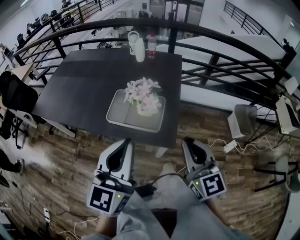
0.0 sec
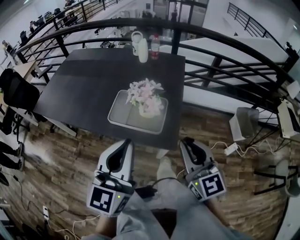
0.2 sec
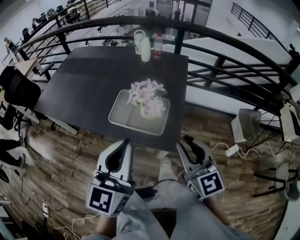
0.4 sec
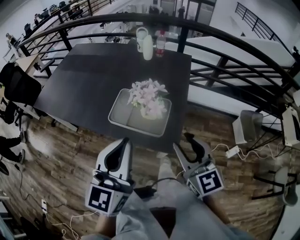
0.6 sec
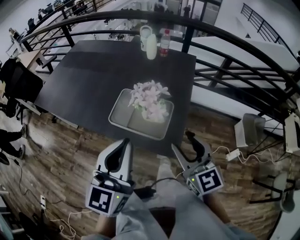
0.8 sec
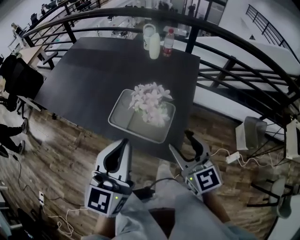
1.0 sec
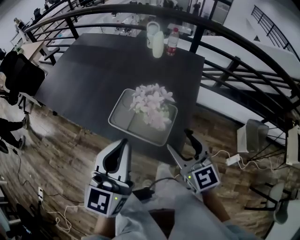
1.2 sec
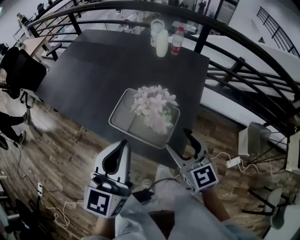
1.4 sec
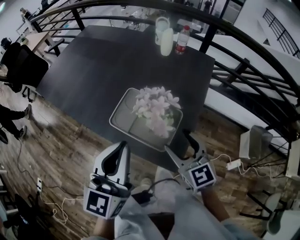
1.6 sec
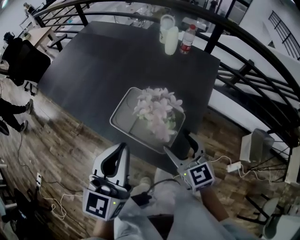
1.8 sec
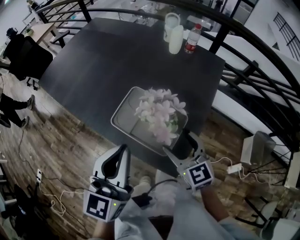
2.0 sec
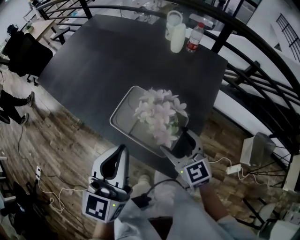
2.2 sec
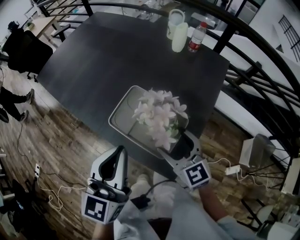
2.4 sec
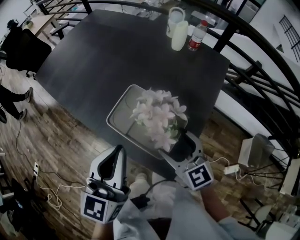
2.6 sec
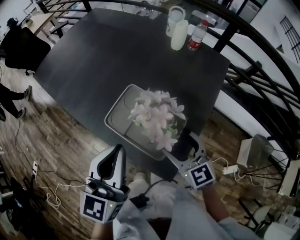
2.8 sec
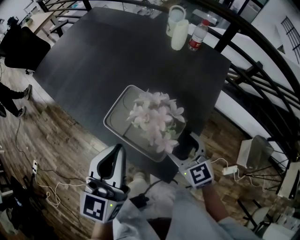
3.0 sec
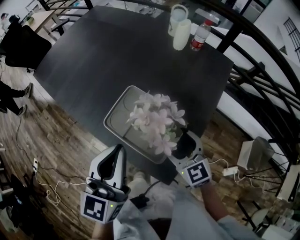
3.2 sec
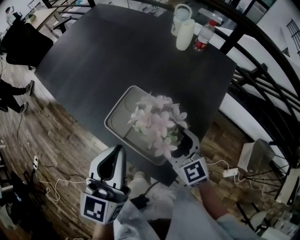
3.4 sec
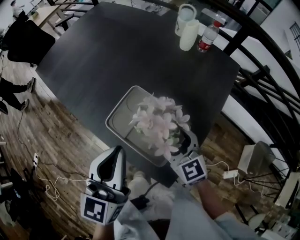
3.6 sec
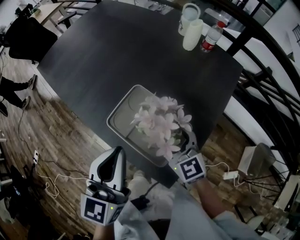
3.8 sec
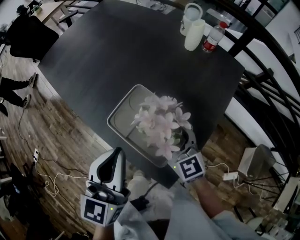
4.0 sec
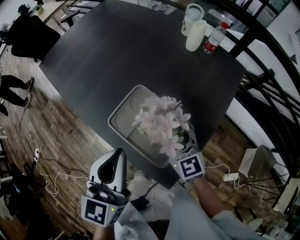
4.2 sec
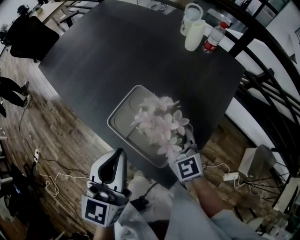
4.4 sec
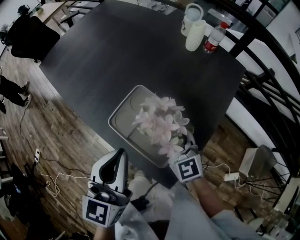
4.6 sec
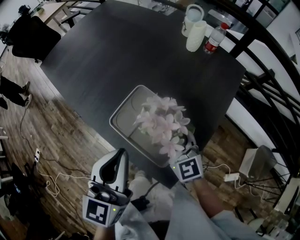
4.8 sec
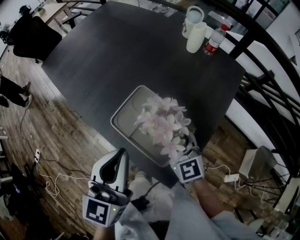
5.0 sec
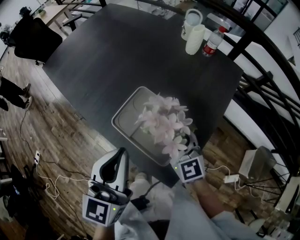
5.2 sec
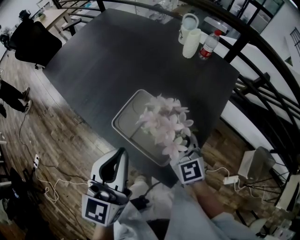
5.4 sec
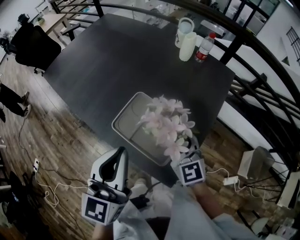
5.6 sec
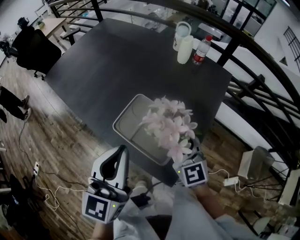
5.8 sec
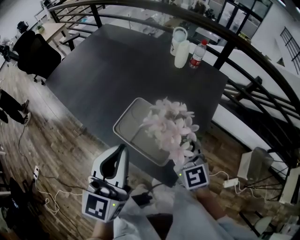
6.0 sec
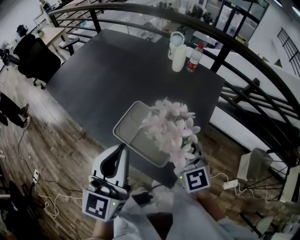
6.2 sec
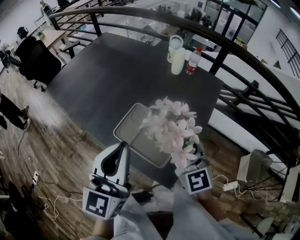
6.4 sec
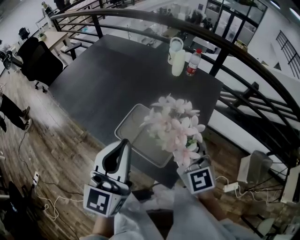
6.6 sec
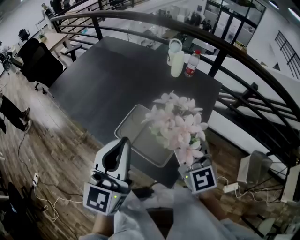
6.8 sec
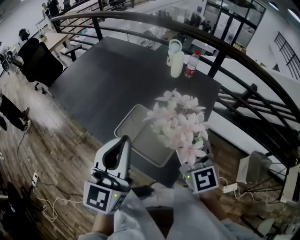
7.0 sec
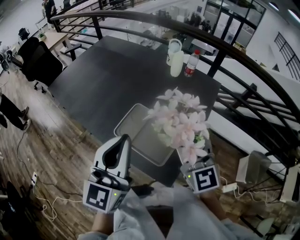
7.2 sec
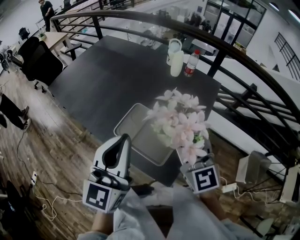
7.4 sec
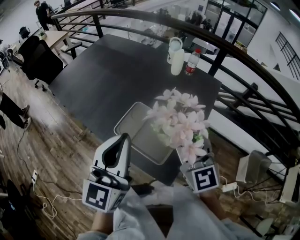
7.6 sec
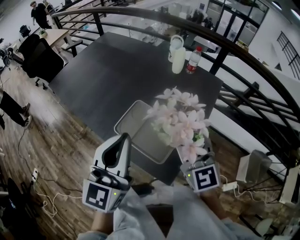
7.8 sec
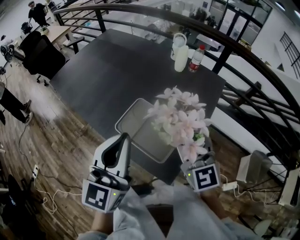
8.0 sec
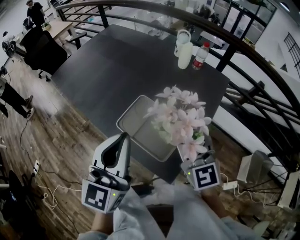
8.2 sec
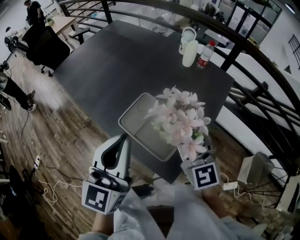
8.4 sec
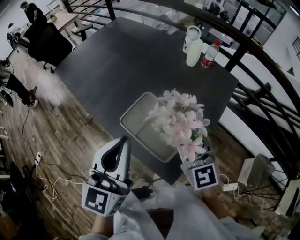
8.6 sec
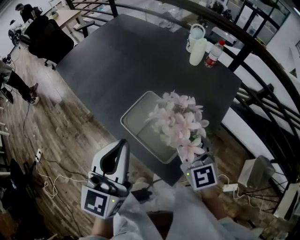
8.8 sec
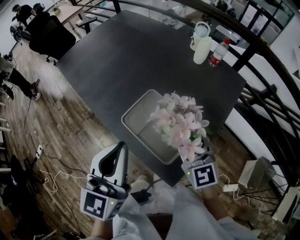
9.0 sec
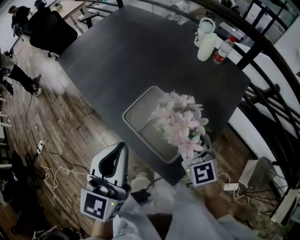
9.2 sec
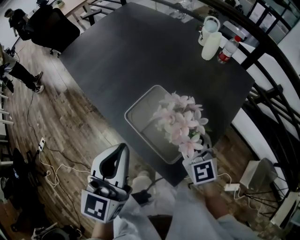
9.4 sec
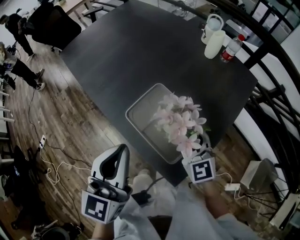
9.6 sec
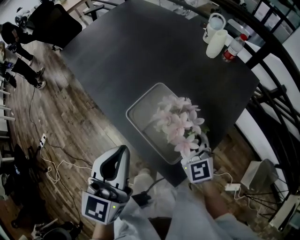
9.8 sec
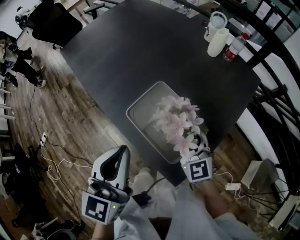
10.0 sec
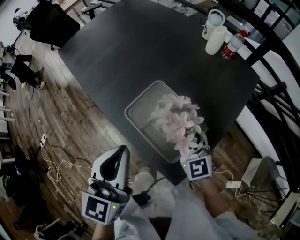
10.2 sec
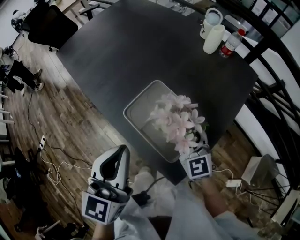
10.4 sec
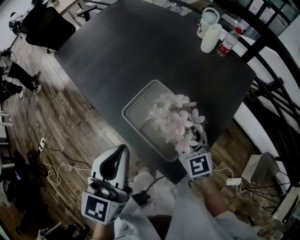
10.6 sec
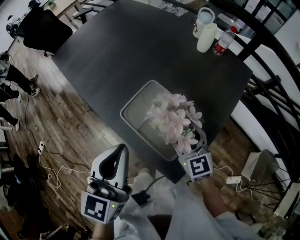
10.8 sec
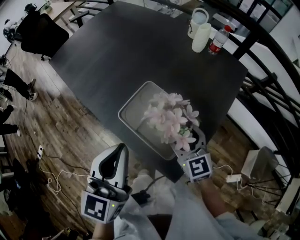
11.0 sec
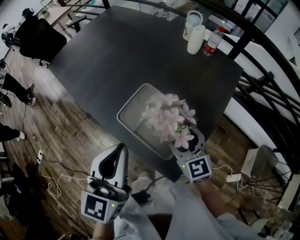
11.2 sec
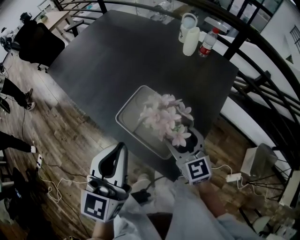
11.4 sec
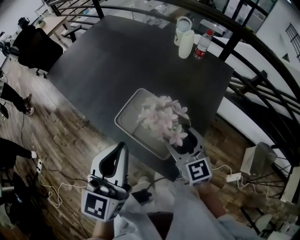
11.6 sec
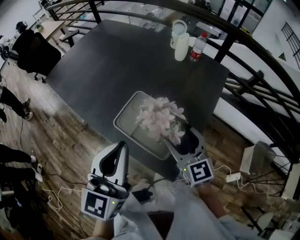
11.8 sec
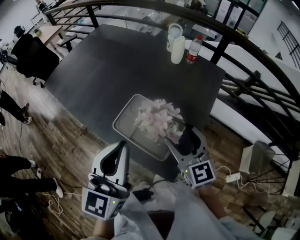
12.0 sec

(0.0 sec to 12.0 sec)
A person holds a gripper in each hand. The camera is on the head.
0.0 sec - 1.6 sec: The right gripper travels forward and downward by about 20 cm, swivels roughly 30 degrees, and opens, while the left gripper travels forward by about 15 cm.
1.6 sec - 3.0 sec: The left gripper is displaced forward by about 5 cm. Meanwhile the right gripper moves downward and forward, roughly 10 cm.
3.0 sec - 4.4 sec: The right gripper shifts some 5 cm forward, and closes.
4.4 sec - 6.0 sec: The grippers both shift upward by roughly 10 cm.
6.0 sec - 7.6 sec: The right gripper travels upward by approximately 10 cm.
7.6 sec - 9.0 sec: The right gripper moves downward, about 10 cm. The left gripper changes place by about 5 cm.
9.0 sec - 10.4 sec: The right gripper travels downward by about 10 cm.
10.4 sec - 12.0 sec: The left gripper heads upward, covering approximately 5 cm. The right gripper travels upward by approximately 10 cm.

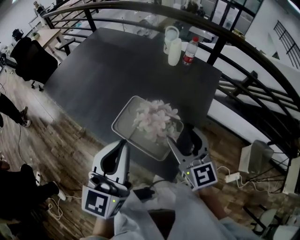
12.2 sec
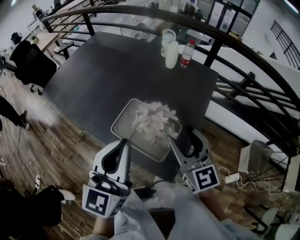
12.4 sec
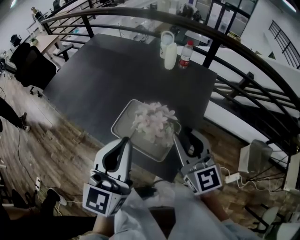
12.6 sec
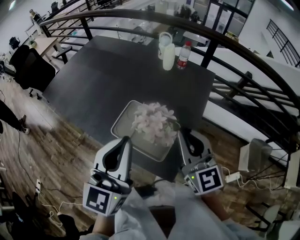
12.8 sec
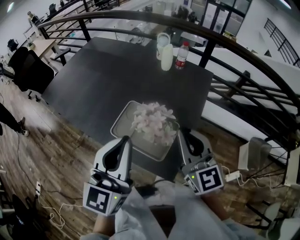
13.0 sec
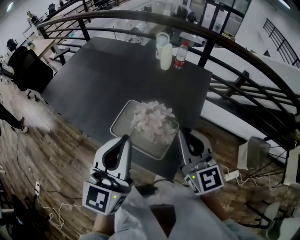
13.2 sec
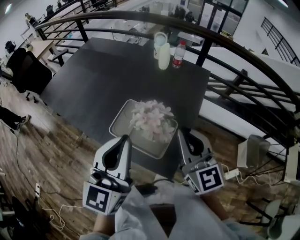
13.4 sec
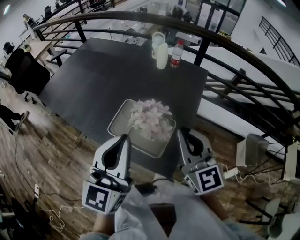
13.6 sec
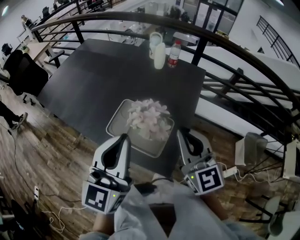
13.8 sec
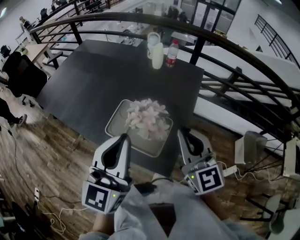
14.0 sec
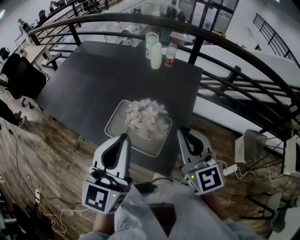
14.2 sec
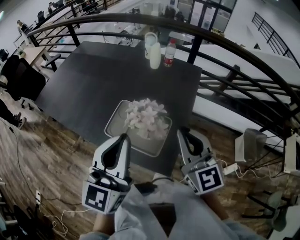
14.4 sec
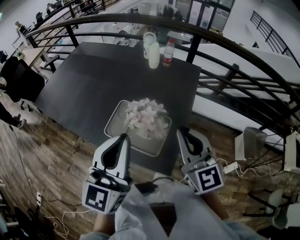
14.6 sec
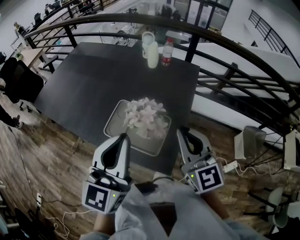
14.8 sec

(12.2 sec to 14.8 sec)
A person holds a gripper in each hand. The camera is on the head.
12.2 sec - 13.4 sec: The right gripper travels upward by some 5 cm, and closes its fingers.
13.4 sec - 14.8 sec: There are only small adjustments of the grippers.

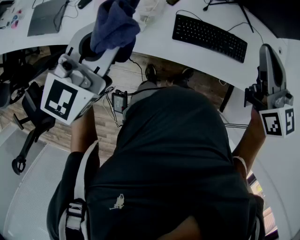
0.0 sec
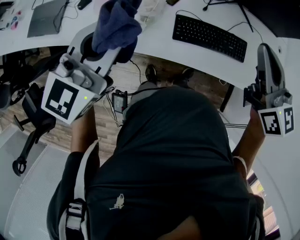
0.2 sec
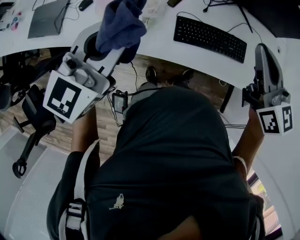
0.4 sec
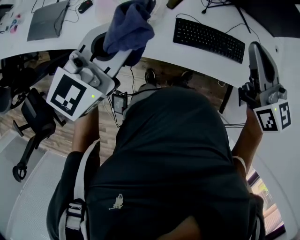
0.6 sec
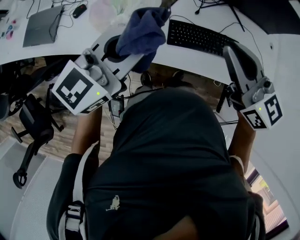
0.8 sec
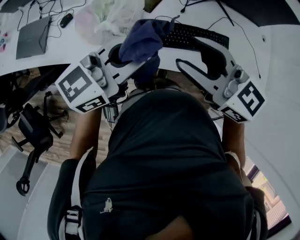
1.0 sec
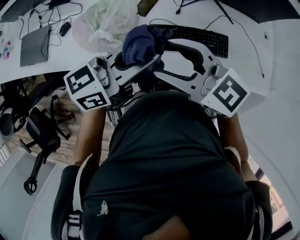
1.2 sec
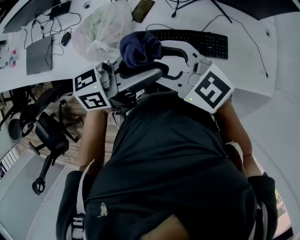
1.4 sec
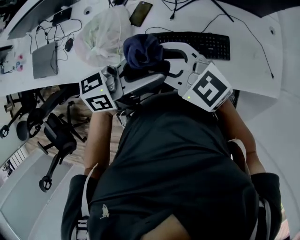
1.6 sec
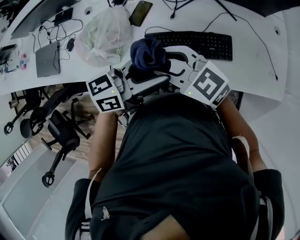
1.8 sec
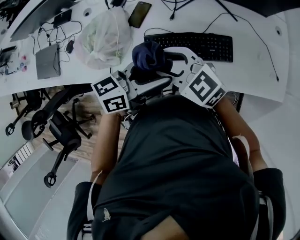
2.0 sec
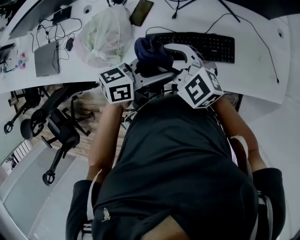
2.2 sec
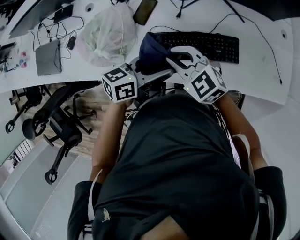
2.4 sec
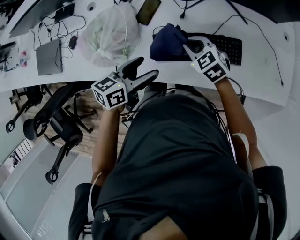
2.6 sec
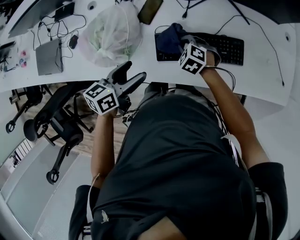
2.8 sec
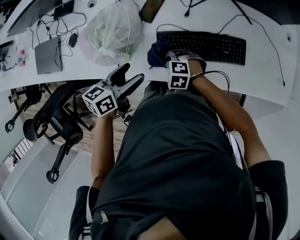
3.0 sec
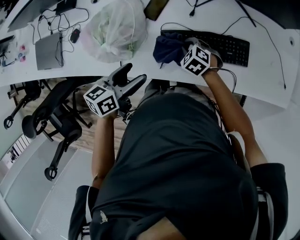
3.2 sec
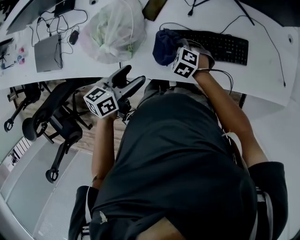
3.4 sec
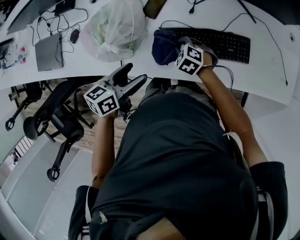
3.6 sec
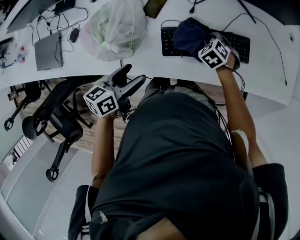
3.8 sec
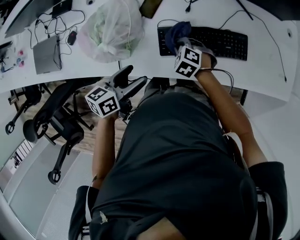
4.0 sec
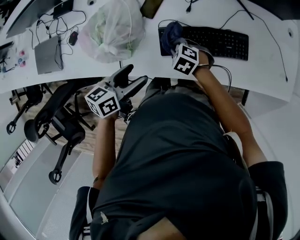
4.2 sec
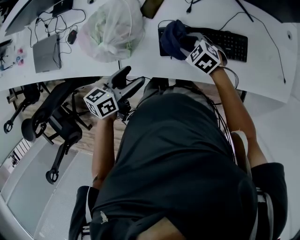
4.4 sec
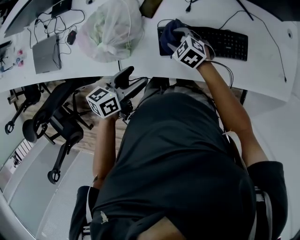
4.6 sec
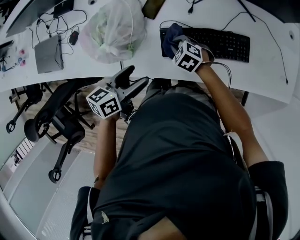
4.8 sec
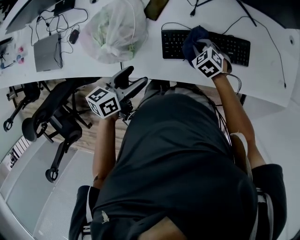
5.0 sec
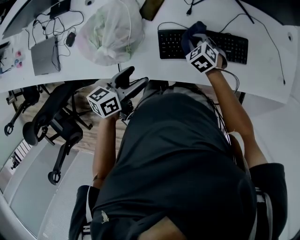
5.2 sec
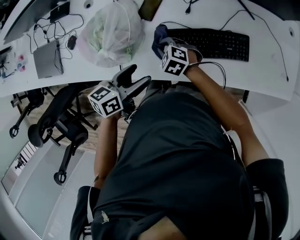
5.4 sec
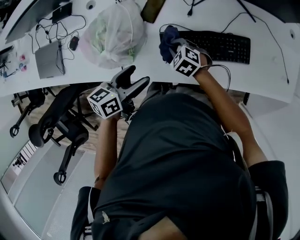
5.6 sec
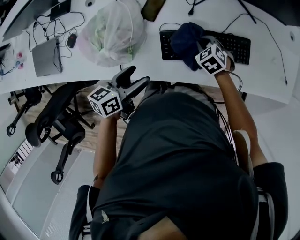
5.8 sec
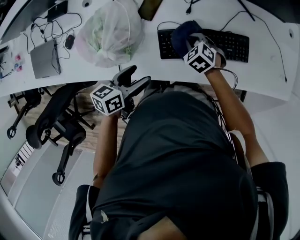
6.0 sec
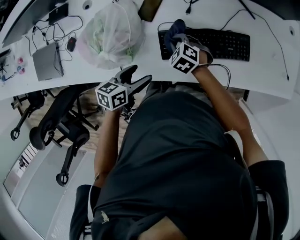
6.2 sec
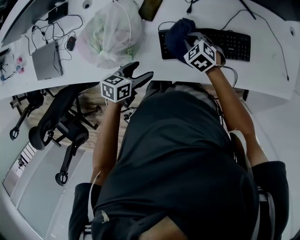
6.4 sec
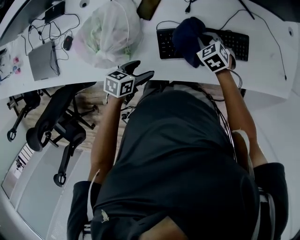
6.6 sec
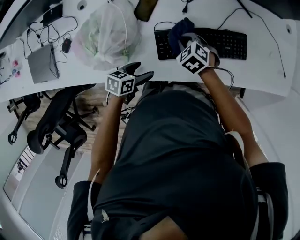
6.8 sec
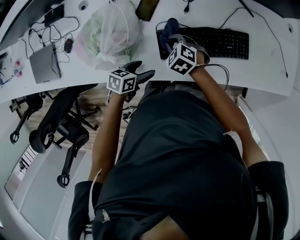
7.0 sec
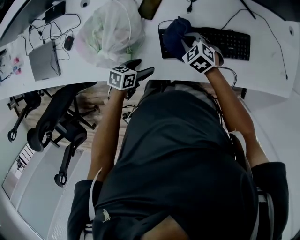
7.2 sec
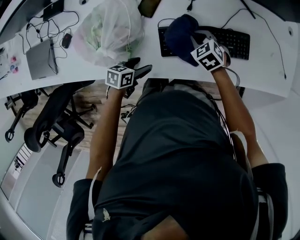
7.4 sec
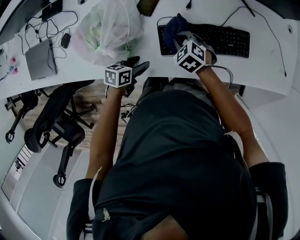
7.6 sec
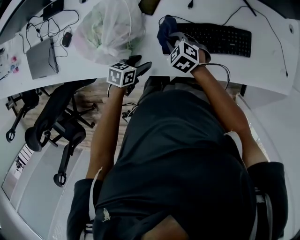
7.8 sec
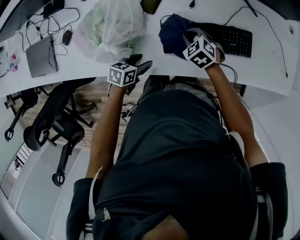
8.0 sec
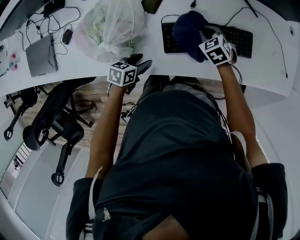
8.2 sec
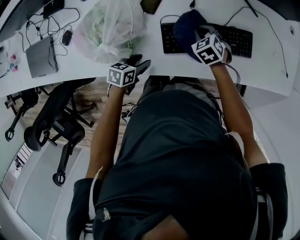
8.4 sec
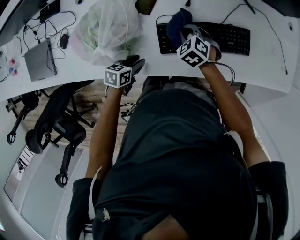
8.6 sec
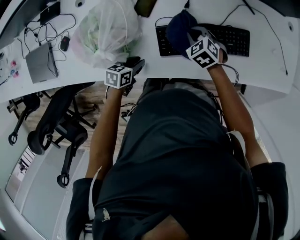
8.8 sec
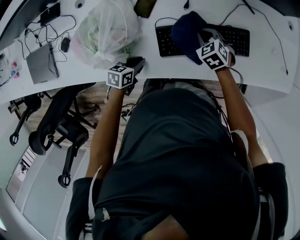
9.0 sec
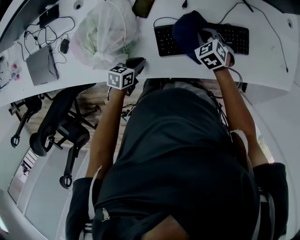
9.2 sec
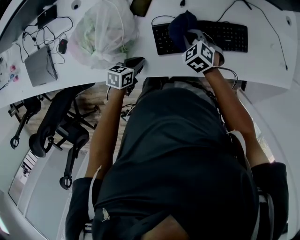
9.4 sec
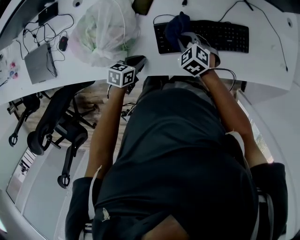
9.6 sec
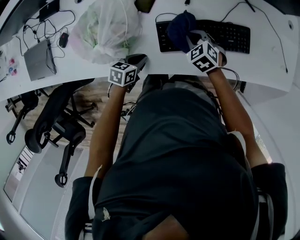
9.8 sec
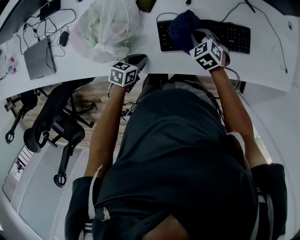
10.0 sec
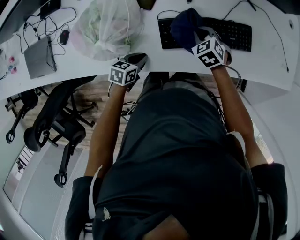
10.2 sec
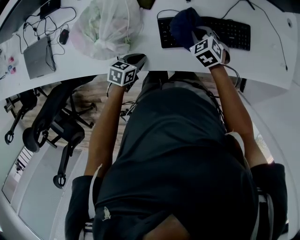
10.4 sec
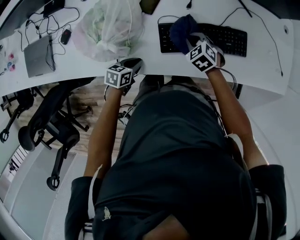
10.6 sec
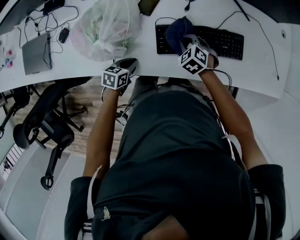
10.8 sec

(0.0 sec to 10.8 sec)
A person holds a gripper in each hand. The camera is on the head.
0.0 sec - 1.6 sec: The left gripper shifts by some 25 cm, changes its angle by some 60 degrees, and opens its fingers, while the right gripper shifts some 10 cm downward, rotates roughly 40 degrees, and opens up.
1.6 sec - 3.0 sec: The right gripper shifts roughly 30 cm downward, angles its fingers downward, by about 50 degrees, and closes up; the left gripper shifts some 20 cm downward, and tilts its fingers some 30 degrees downward.
3.0 sec - 4.6 sec: The right gripper changes its angle by roughly 30 degrees, and opens.
4.6 sec - 6.2 sec: The right gripper swings left and right, approximately 15 cm each way, with 3 reversals, and closes. The left gripper heads downward, covering approximately 5 cm.
6.2 sec - 7.8 sec: The right gripper swings left and right, about 15 cm each way, with 3 reversals. The left gripper is displaced downward by some 10 cm.
7.8 sec - 9.2 sec: The right gripper moves left and right over about 15 cm, changing direction 2 times, and swivels about 20 degrees. The left gripper closes its fingers.
9.2 sec - 10.8 sec: The right gripper shifts about 10 cm backward and to the left.
